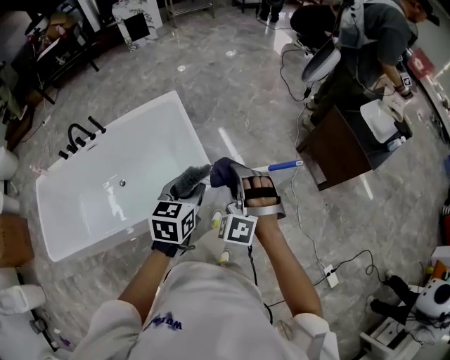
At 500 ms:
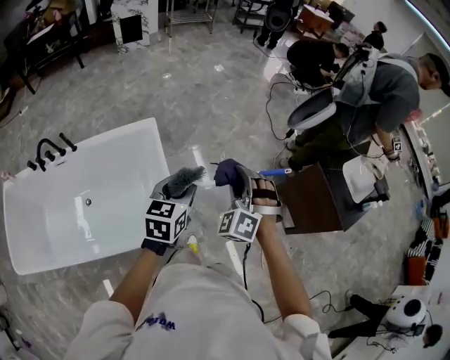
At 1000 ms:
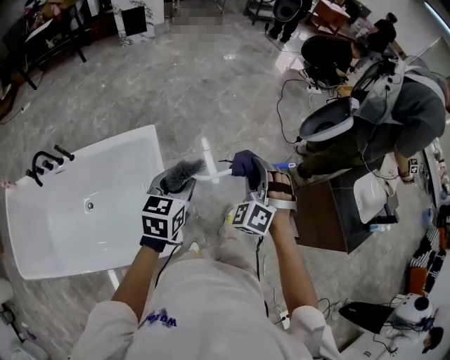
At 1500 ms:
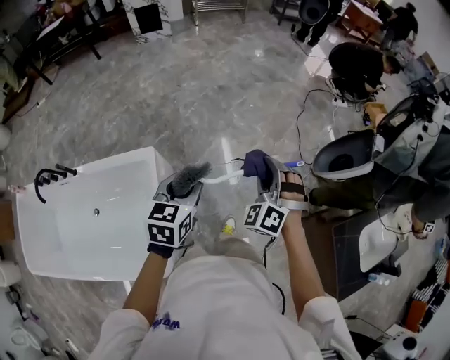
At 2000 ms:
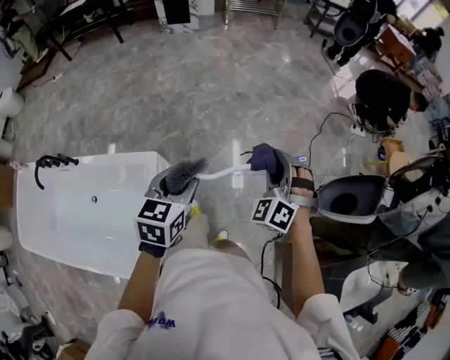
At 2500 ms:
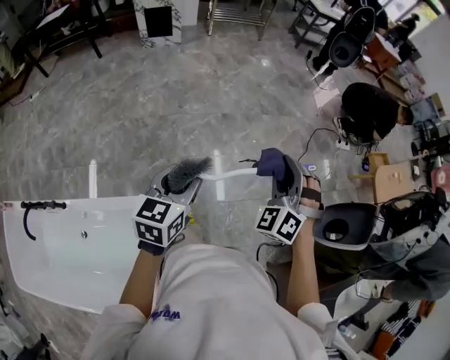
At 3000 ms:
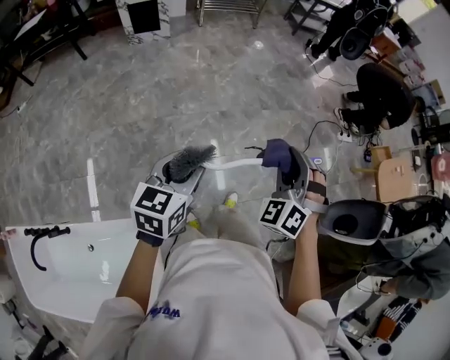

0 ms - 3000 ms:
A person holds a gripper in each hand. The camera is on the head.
0 ms - 1500 ms: The left gripper ends up some 60 cm from where it was.
1500 ms - 3000 ms: The left gripper shifts by about 50 cm.

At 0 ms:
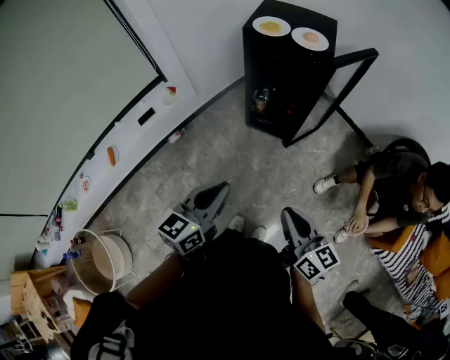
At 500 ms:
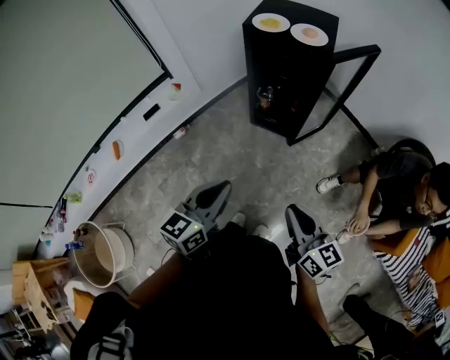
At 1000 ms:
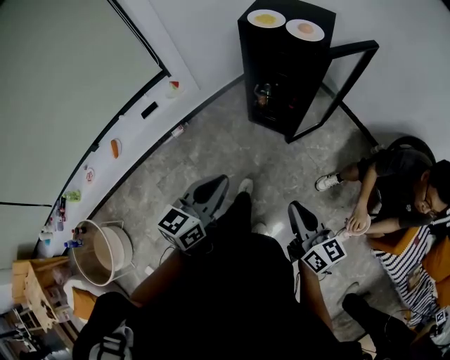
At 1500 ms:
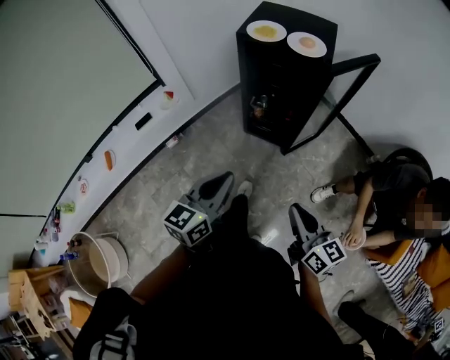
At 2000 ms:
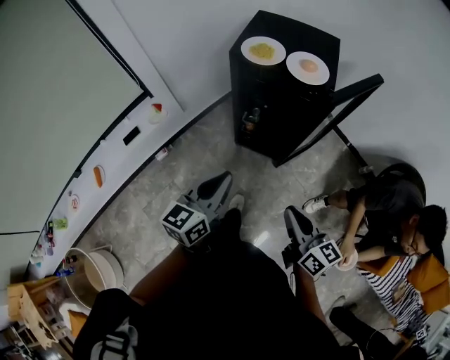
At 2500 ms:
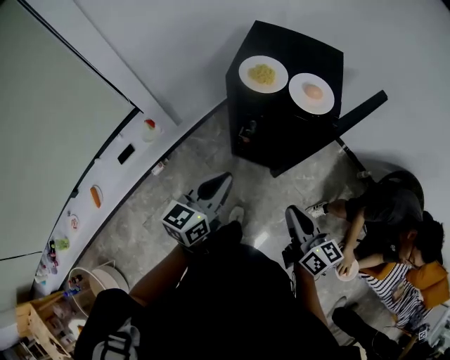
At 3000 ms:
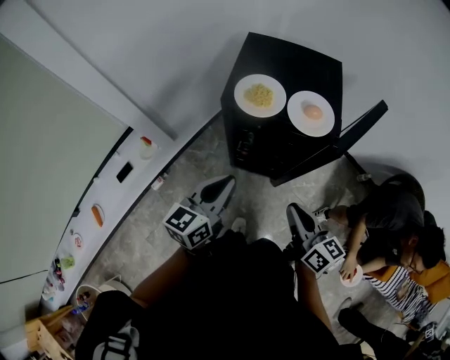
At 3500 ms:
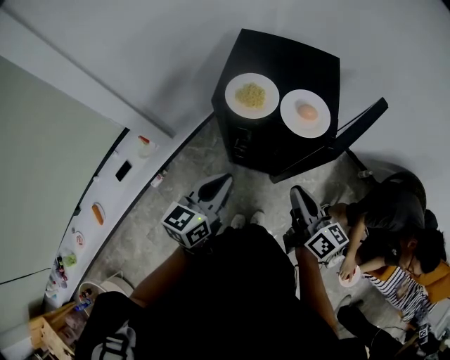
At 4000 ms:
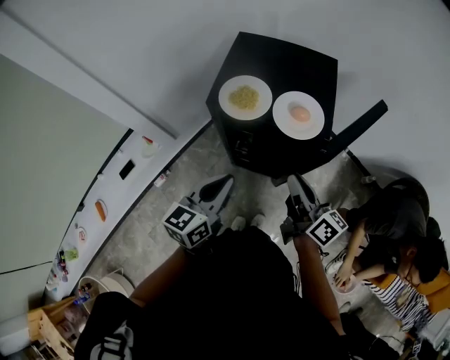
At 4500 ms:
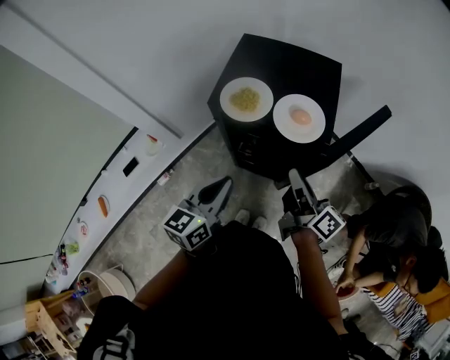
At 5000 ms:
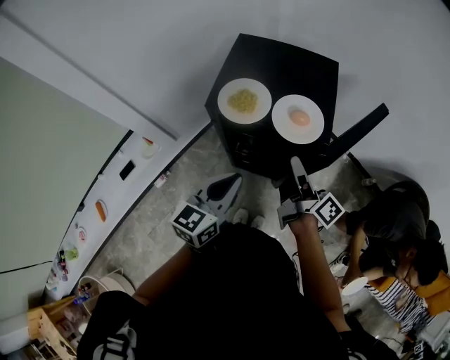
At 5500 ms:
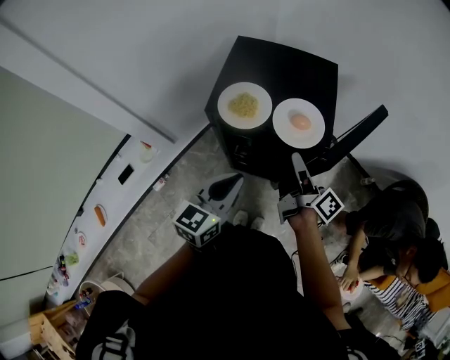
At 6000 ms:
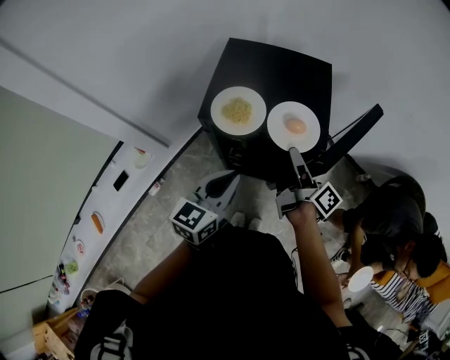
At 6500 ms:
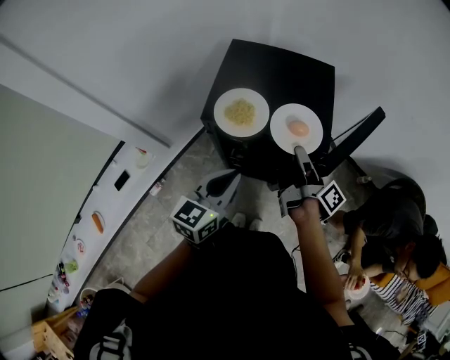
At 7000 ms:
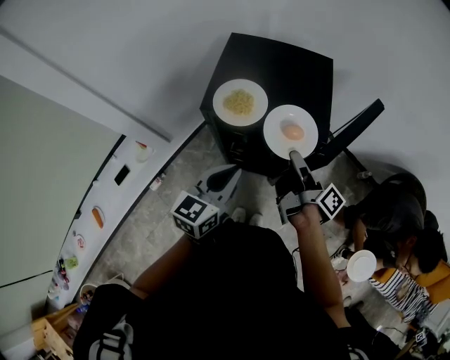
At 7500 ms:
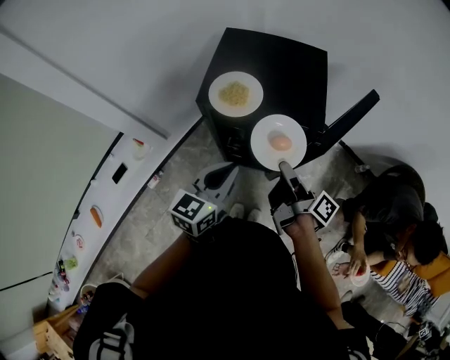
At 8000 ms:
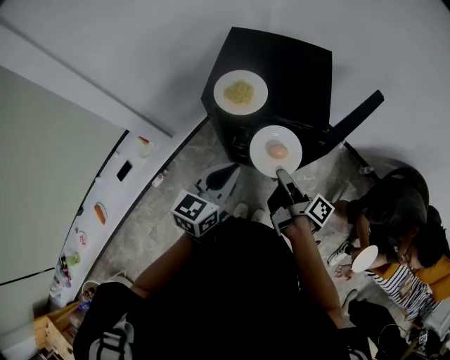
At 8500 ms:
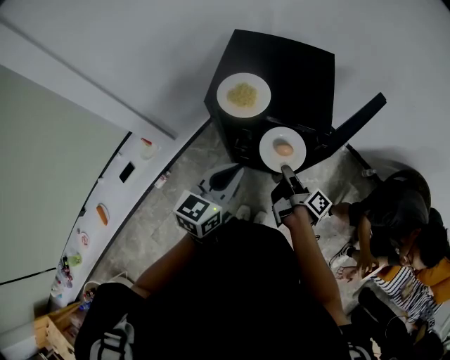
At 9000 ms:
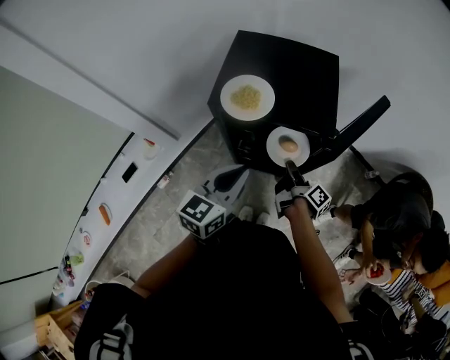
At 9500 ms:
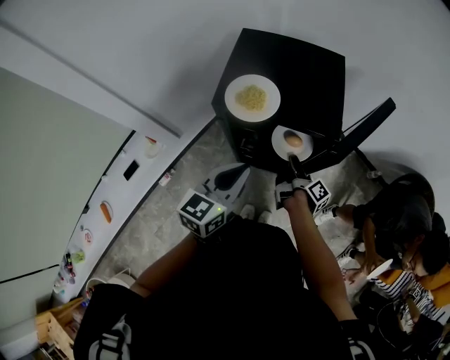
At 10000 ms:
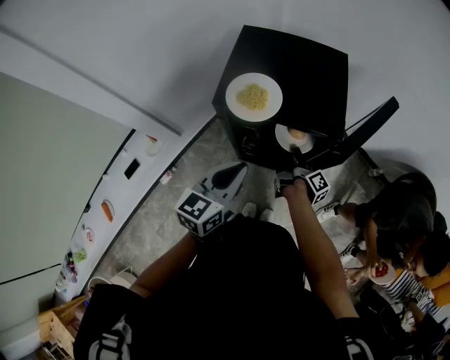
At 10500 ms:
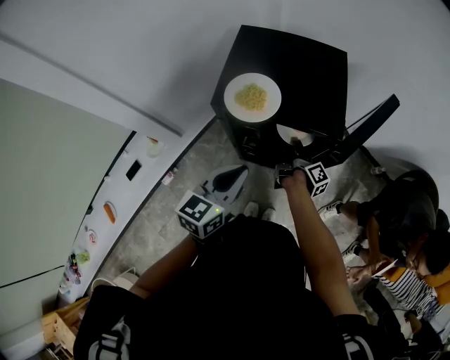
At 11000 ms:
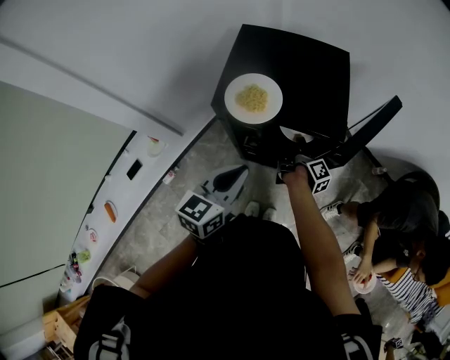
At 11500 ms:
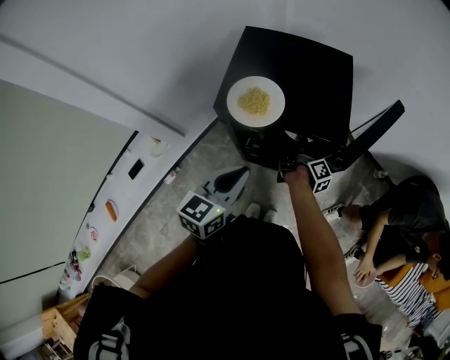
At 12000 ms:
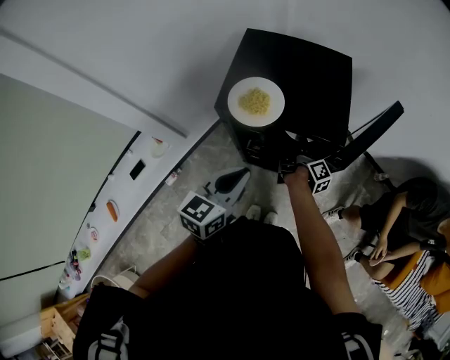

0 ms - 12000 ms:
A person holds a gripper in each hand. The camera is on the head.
0 ms - 2000 ms: The two grippers go approximately 20 cm forward.
2000 ms - 4000 ms: The grippers both shift forward by some 25 cm. The right gripper changes its angle by about 20 degrees.
4000 ms - 6000 ms: The left gripper is displaced forward by roughly 5 cm, while the right gripper heads forward, covering some 10 cm, and turns by some 30 degrees.
6000 ms - 8000 ms: The right gripper travels backward and downward by roughly 10 cm.
8000 ms - 10000 ms: The right gripper is displaced downward and forward by some 15 cm, and turns by some 20 degrees.
10000 ms - 12000 ms: The right gripper heads forward, covering about 5 cm.

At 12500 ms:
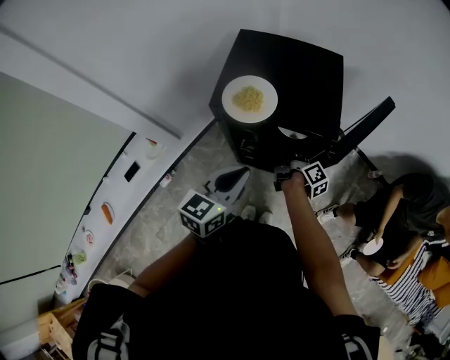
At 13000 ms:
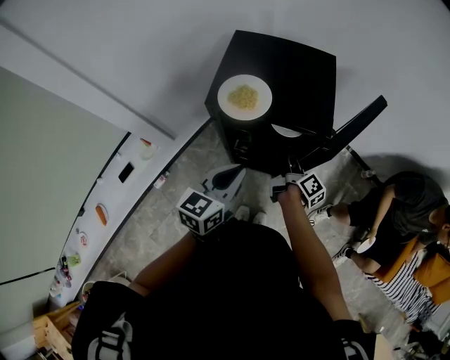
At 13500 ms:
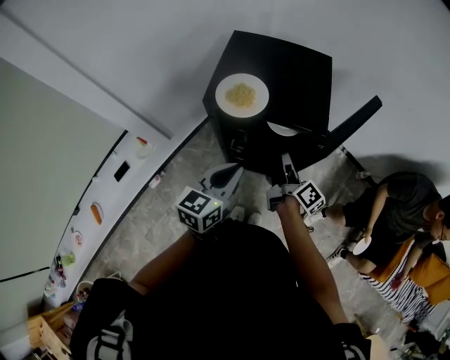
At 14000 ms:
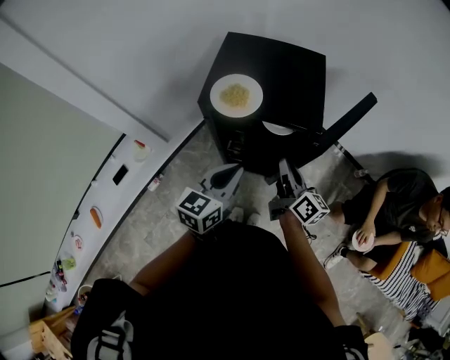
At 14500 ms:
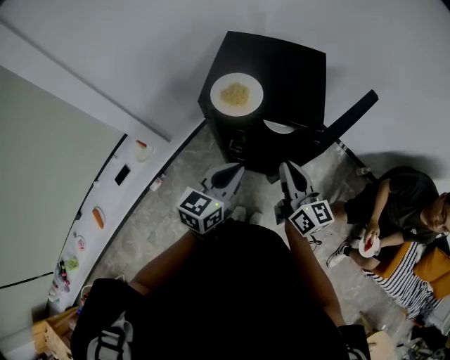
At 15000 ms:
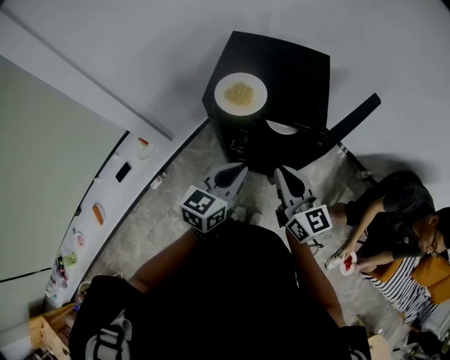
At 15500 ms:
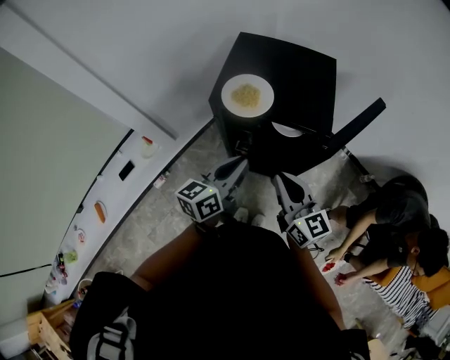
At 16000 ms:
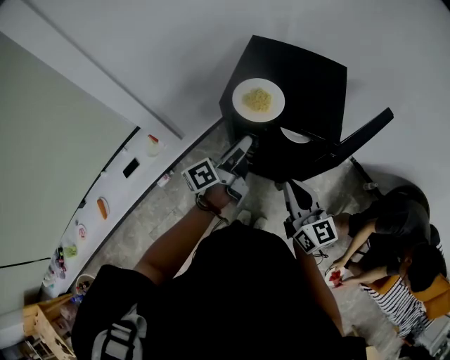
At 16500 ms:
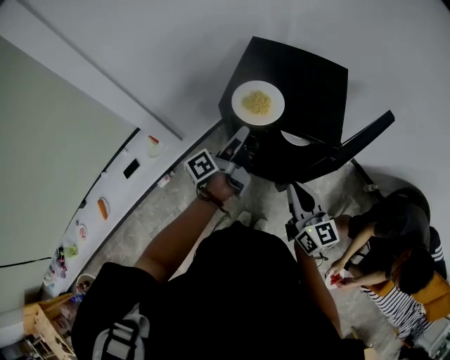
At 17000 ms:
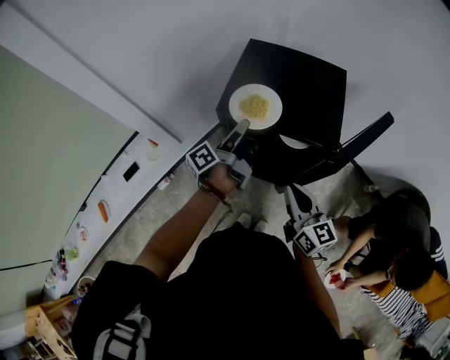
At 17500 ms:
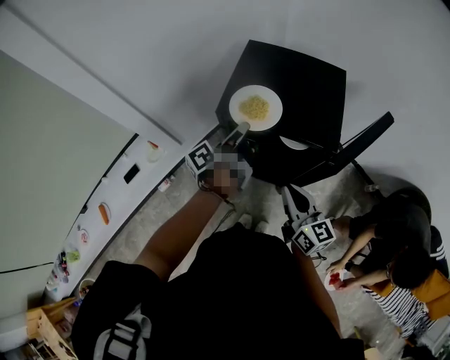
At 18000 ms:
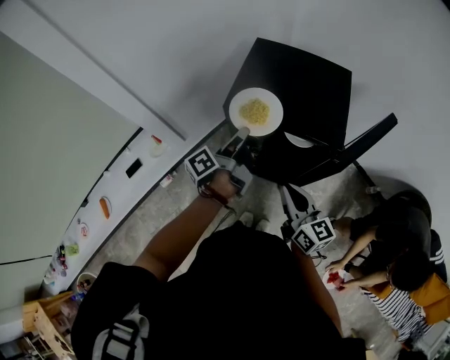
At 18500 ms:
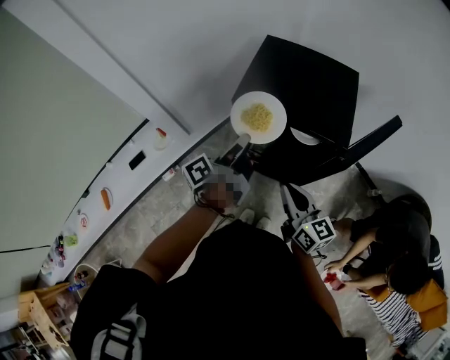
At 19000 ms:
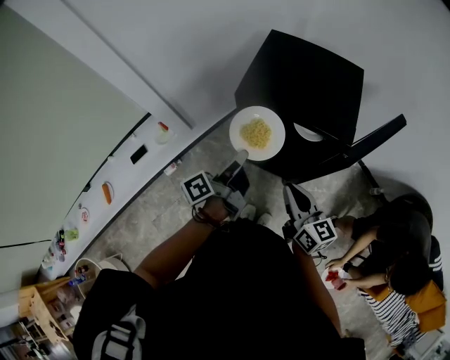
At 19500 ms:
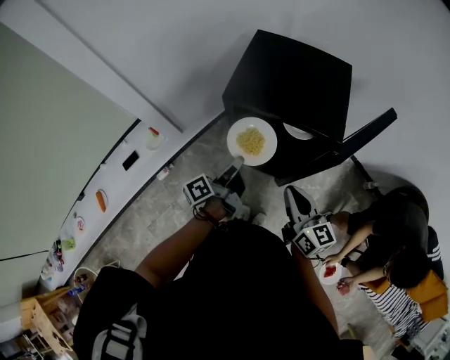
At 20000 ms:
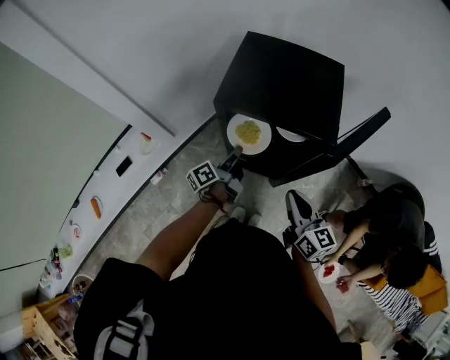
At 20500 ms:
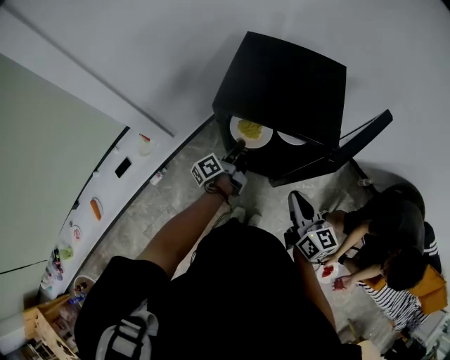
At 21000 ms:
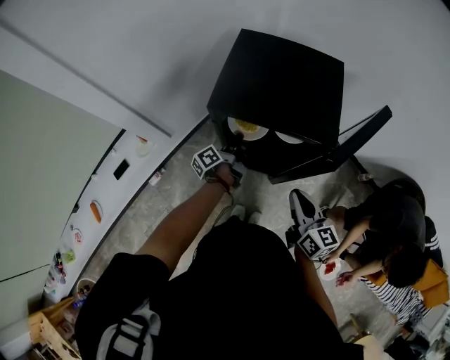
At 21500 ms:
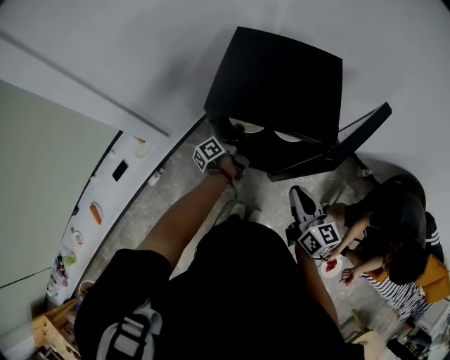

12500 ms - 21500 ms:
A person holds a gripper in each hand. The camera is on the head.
12500 ms - 14500 ms: The right gripper goes some 20 cm upward and backward, and twists some 50 degrees counterclockwise, seen from behind.
14500 ms - 17000 ms: The left gripper heads forward, covering some 15 cm, twists roughly 70 degrees counterclockwise, seen from behind, and opens.
17000 ms - 19500 ms: The left gripper heads backward and downward, covering approximately 15 cm, and closes up.
19500 ms - 21500 ms: The right gripper changes place by some 5 cm, while the left gripper shifts approximately 20 cm forward and downward.

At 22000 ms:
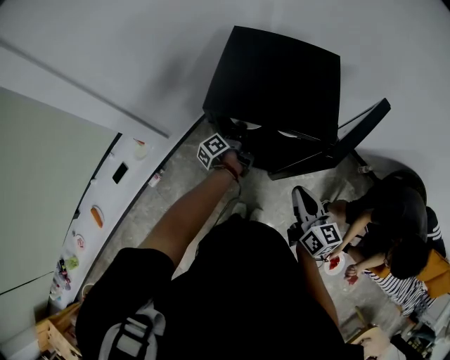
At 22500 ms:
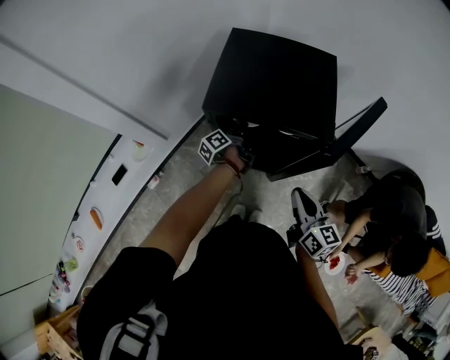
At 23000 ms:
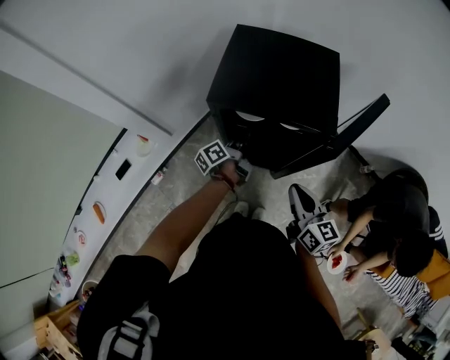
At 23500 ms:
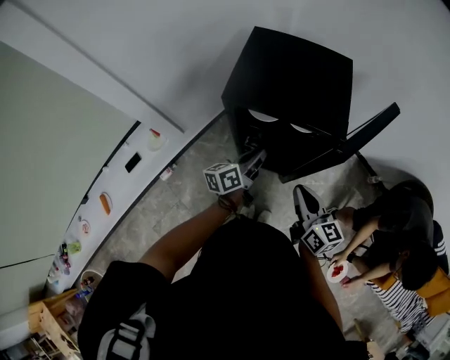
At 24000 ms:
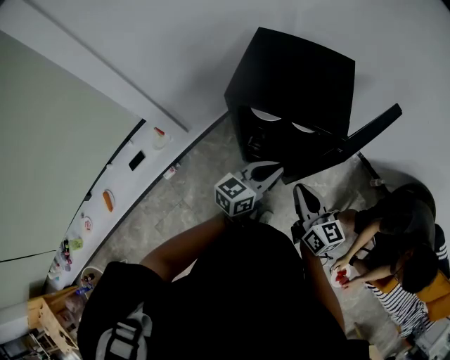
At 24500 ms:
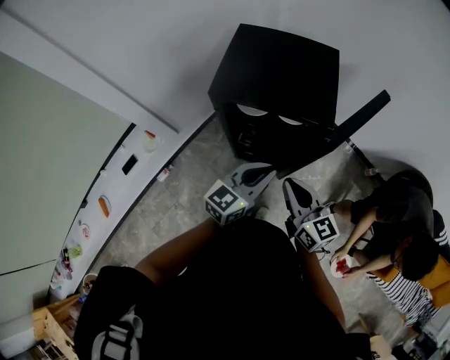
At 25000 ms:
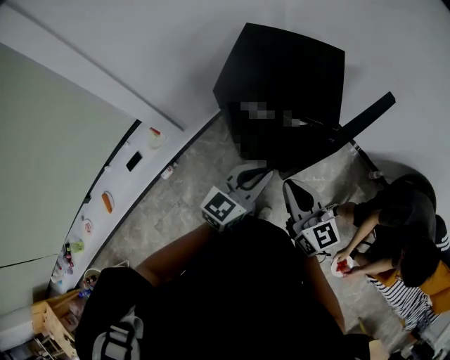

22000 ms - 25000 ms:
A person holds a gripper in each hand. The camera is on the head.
22000 ms - 23500 ms: The left gripper travels backward and upward by roughly 15 cm, and swivels about 40 degrees.
23500 ms - 25000 ms: The right gripper is displaced upward by roughly 5 cm; the left gripper heads upward, backward and to the right, covering about 15 cm, and rotates around the line of its fingers by about 50 degrees, clockwise from behind.
